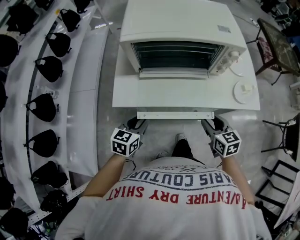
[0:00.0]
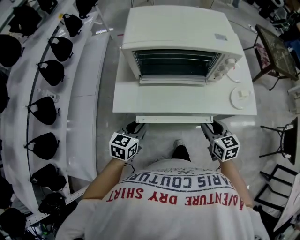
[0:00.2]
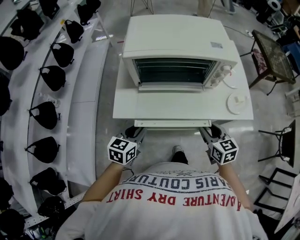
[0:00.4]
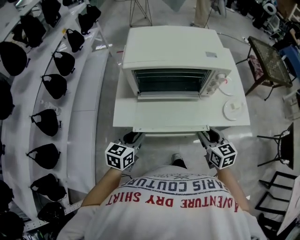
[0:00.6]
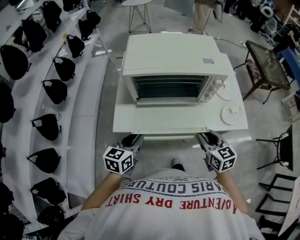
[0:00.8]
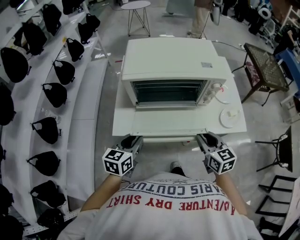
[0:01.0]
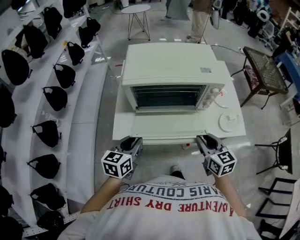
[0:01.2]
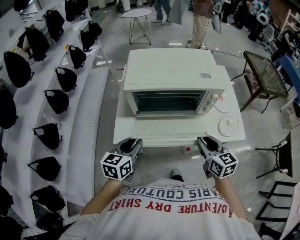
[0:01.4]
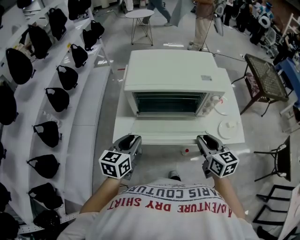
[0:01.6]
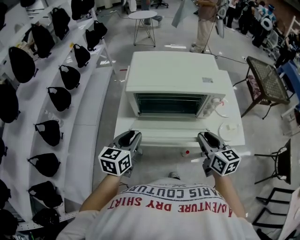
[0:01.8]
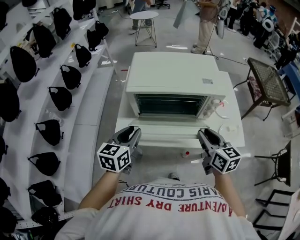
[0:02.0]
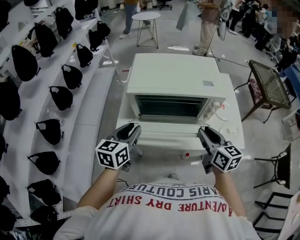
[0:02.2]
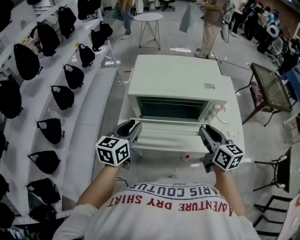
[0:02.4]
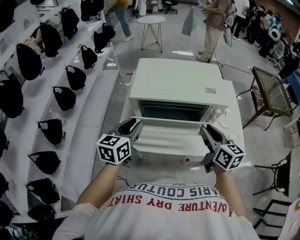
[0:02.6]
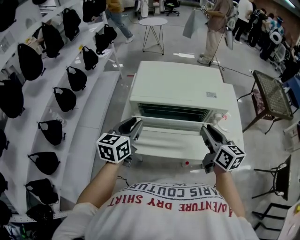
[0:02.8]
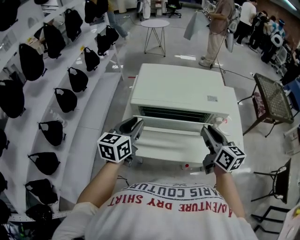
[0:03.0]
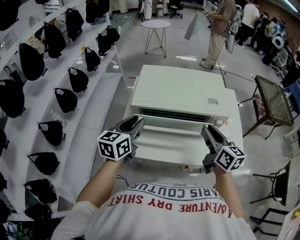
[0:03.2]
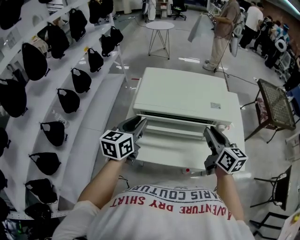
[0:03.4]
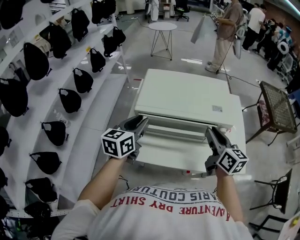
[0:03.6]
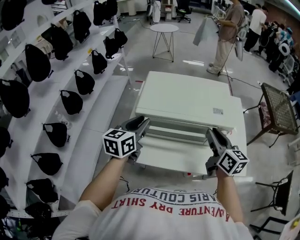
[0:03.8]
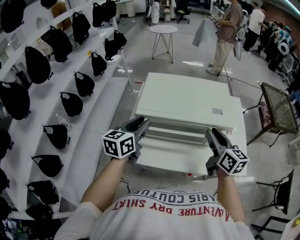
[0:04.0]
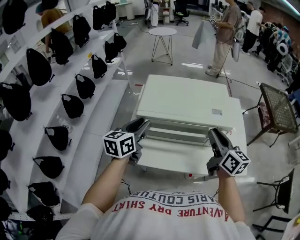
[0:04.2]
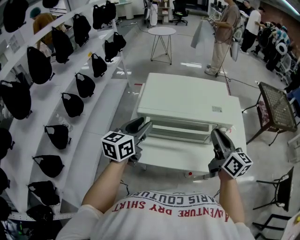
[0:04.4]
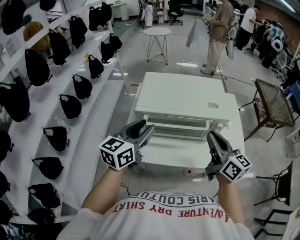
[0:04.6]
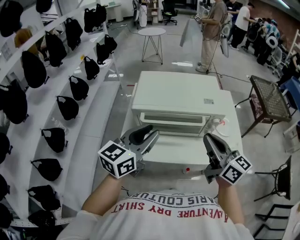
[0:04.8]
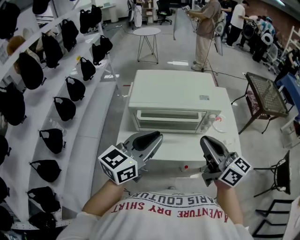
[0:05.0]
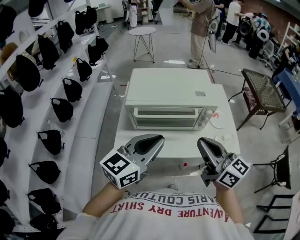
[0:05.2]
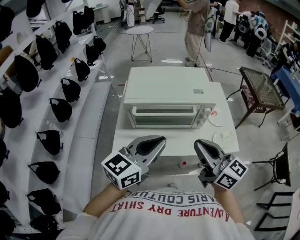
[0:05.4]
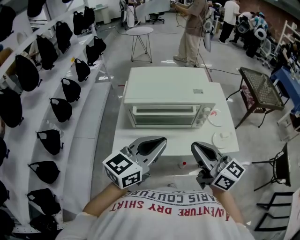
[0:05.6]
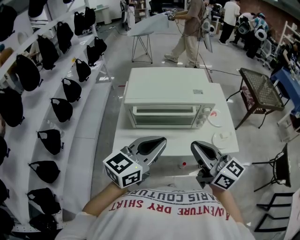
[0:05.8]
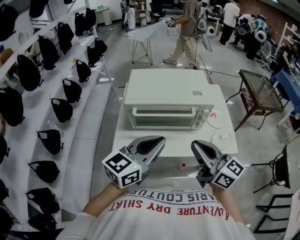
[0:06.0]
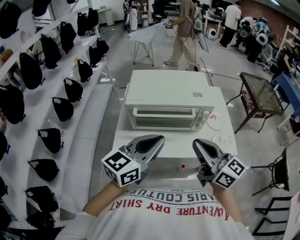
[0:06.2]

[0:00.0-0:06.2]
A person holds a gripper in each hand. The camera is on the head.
0:00.0 to 0:01.6: The grippers both shift upward by approximately 15 cm.
0:01.6 to 0:03.2: The grippers both shift forward and upward by about 15 cm.
0:03.2 to 0:04.6: The grippers both shift upward by about 5 cm.
0:04.6 to 0:06.2: The left gripper shifts roughly 15 cm backward and to the right, and closes up; the right gripper heads backward, covering approximately 10 cm.

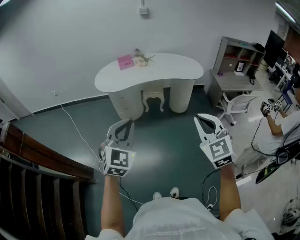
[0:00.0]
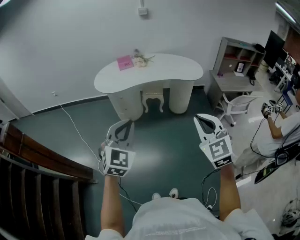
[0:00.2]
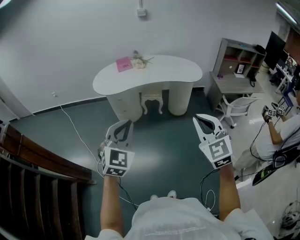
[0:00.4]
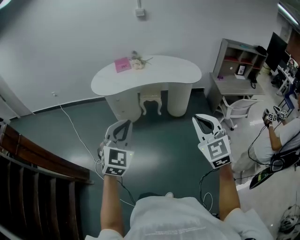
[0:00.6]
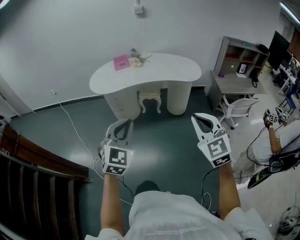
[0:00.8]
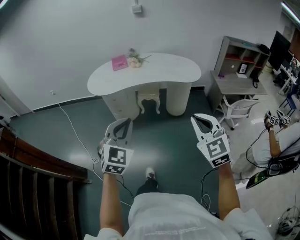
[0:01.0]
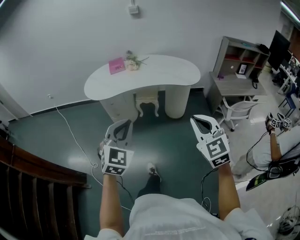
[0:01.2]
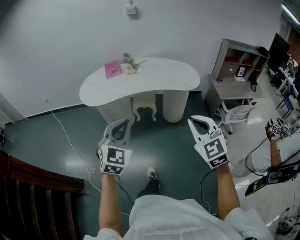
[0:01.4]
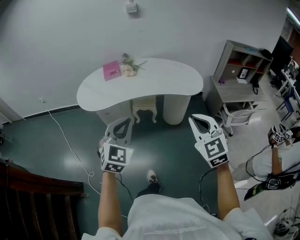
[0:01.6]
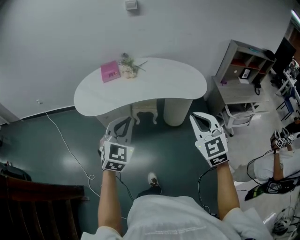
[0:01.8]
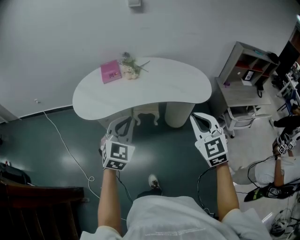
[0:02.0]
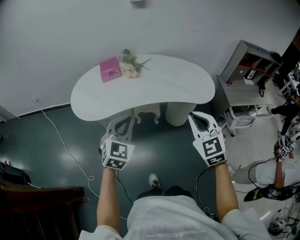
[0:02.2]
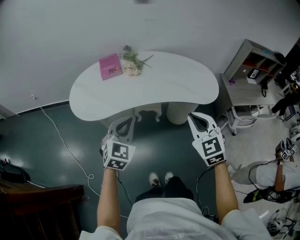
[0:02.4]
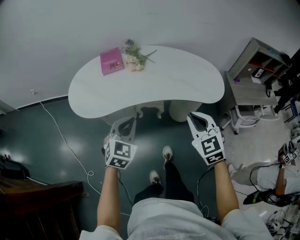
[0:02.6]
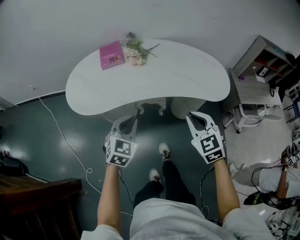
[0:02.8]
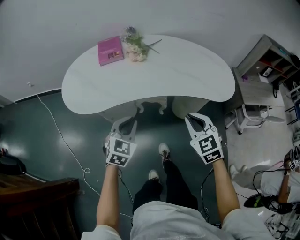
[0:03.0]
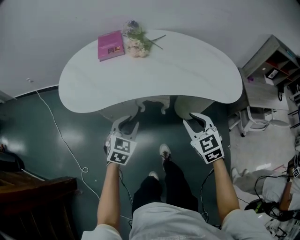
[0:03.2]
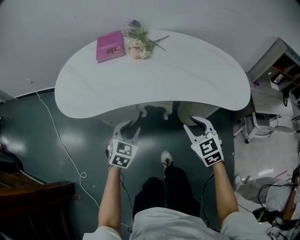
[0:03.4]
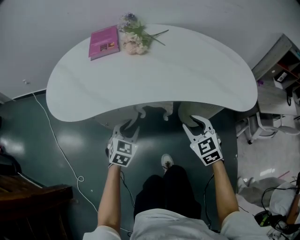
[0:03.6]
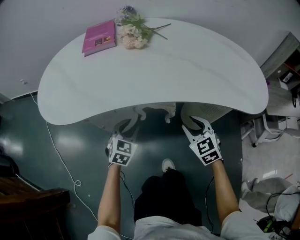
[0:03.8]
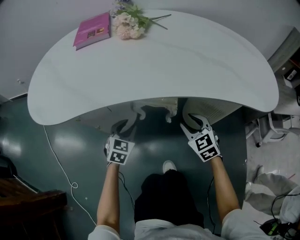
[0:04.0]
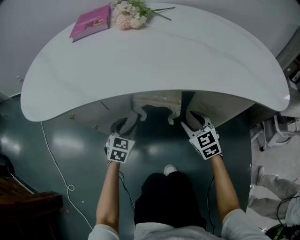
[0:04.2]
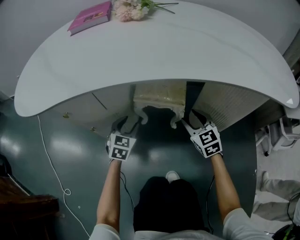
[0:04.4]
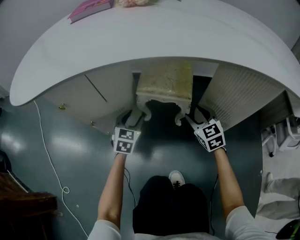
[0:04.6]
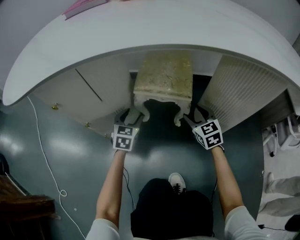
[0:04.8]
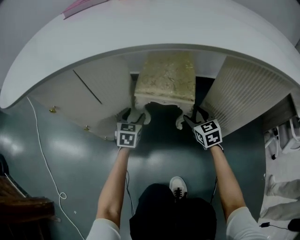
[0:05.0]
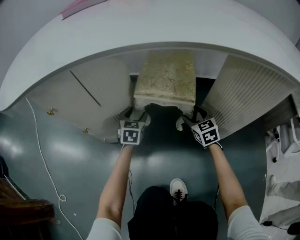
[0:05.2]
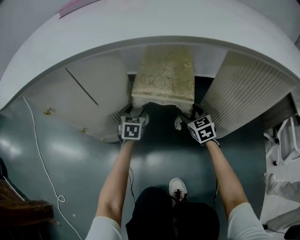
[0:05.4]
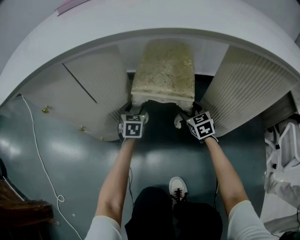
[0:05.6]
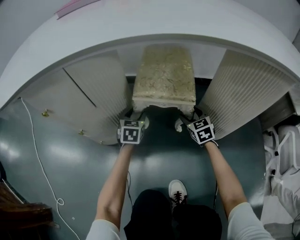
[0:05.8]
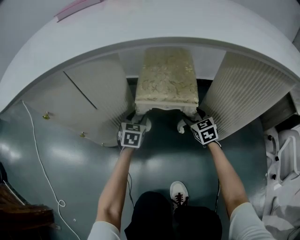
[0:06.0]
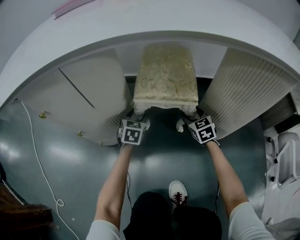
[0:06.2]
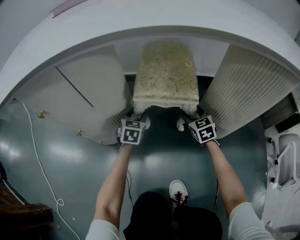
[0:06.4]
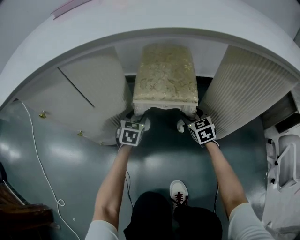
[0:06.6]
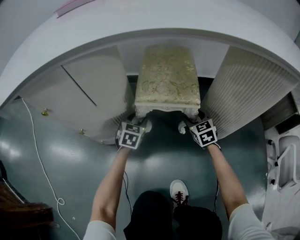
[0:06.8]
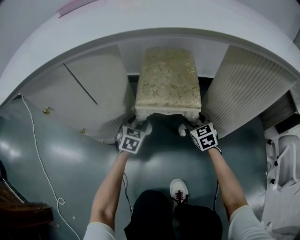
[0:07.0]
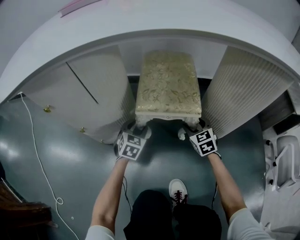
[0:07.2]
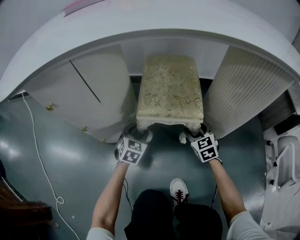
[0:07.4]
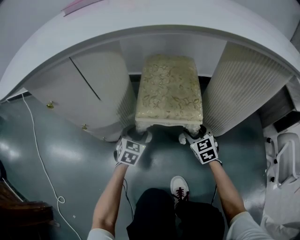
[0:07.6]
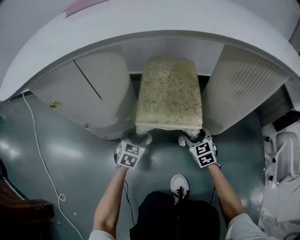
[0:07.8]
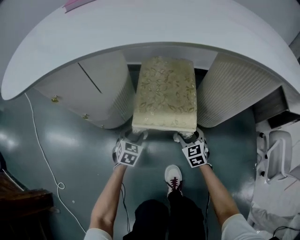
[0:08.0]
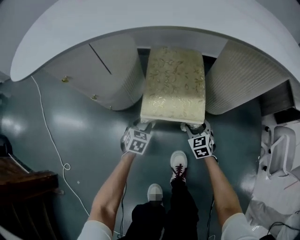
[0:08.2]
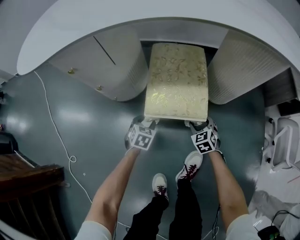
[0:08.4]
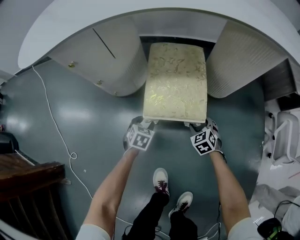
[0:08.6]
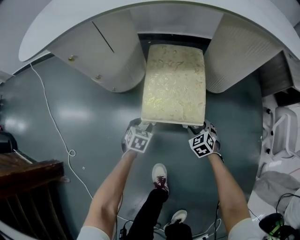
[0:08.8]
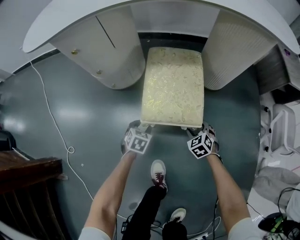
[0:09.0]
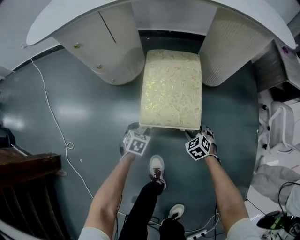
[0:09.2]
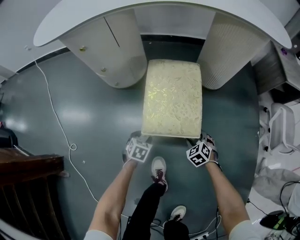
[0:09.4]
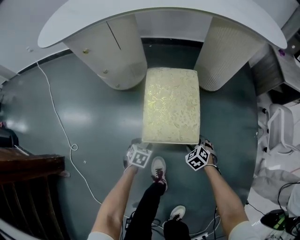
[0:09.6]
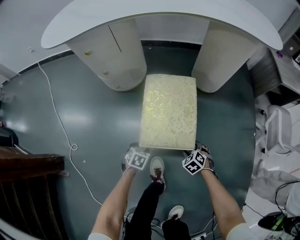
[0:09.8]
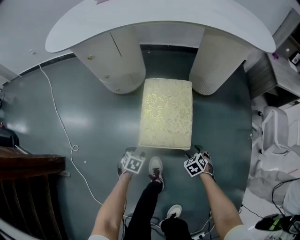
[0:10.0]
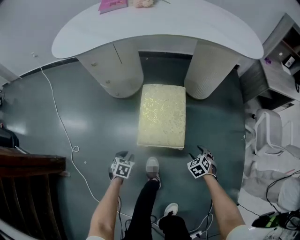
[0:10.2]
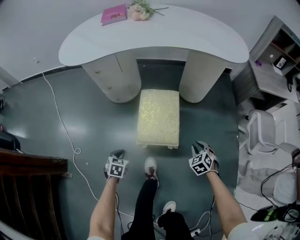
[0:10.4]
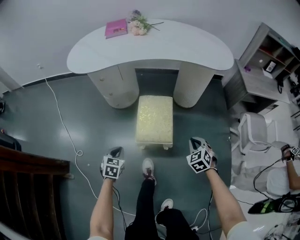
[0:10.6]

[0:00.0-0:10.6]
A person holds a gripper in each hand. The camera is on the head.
0:00.0 to 0:01.6: Both grippers move forward, roughly 25 cm.
0:01.6 to 0:03.0: The right gripper heads forward and downward, covering some 35 cm. The left gripper moves downward and forward, approximately 35 cm.
0:03.0 to 0:04.6: Both grippers travel together downward and forward, some 50 cm. The right gripper opens up. The left gripper opens its fingers.
0:04.6 to 0:06.0: The grippers both shift downward and forward by about 15 cm.
0:06.0 to 0:07.6: The grippers both shift backward by about 10 cm.
0:07.6 to 0:09.0: The grippers both shift backward by approximately 30 cm. The right gripper swivels about 30 degrees. Meanwhile the left gripper changes its angle by approximately 30 degrees.
0:09.0 to 0:10.6: Both grippers move upward and backward, roughly 40 cm. The right gripper closes its fingers, while the left gripper closes.

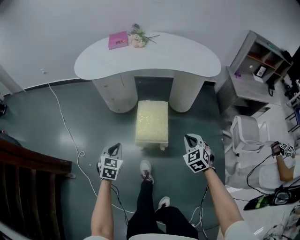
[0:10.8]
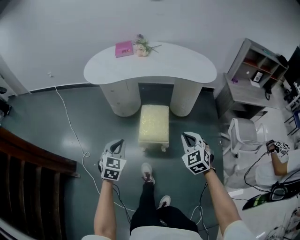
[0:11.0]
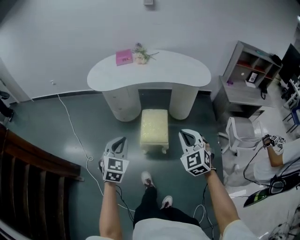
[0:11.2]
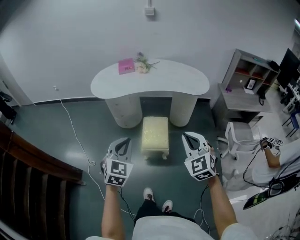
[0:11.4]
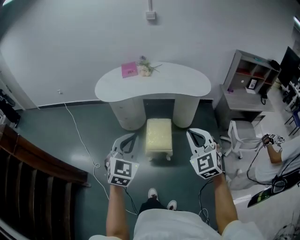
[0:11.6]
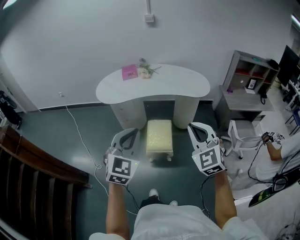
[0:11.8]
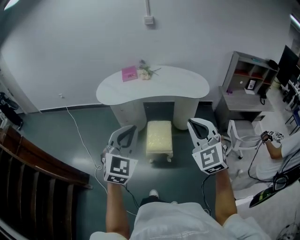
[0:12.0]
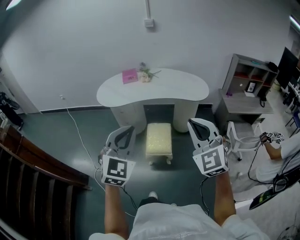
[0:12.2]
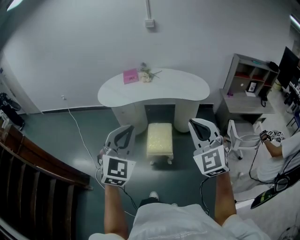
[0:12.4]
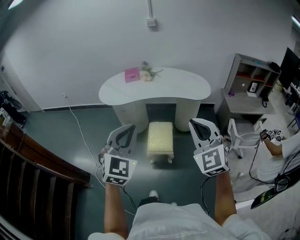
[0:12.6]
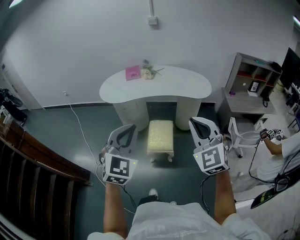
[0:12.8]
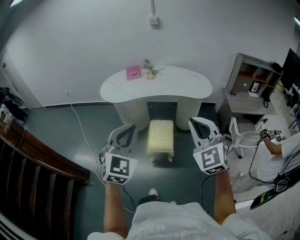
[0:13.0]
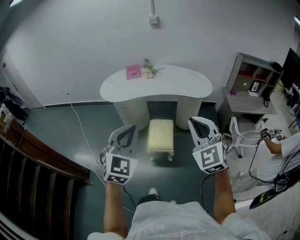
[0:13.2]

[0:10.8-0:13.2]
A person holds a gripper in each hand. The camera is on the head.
0:10.8 to 0:12.0: Both grippers travel together upward, approximately 40 cm. The right gripper tilts its fingers some 30 degrees upward. Meanwhile the left gripper tips its fingers upward by about 30 degrees.
0:12.0 to 0:13.2: The grippers make only small movements.

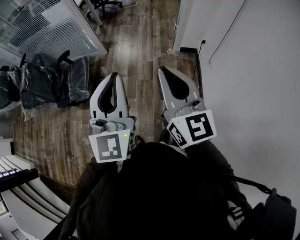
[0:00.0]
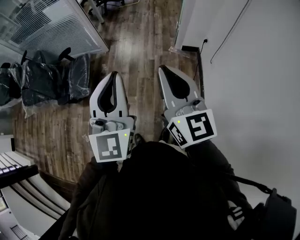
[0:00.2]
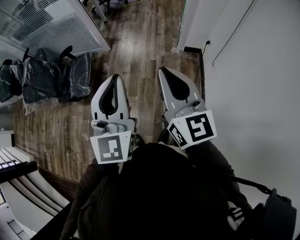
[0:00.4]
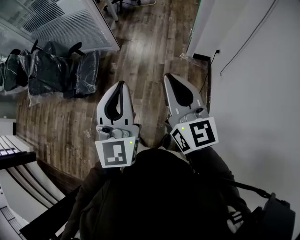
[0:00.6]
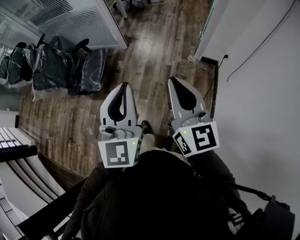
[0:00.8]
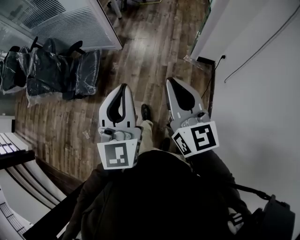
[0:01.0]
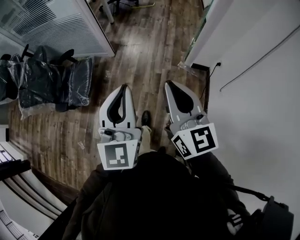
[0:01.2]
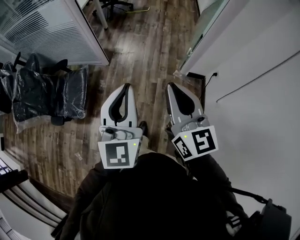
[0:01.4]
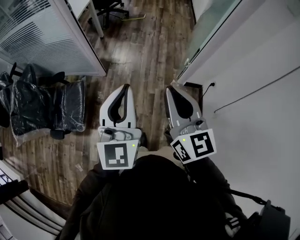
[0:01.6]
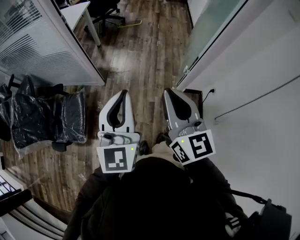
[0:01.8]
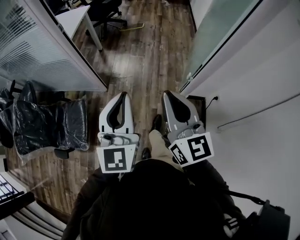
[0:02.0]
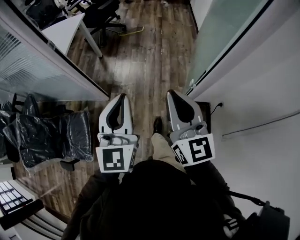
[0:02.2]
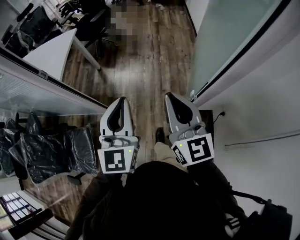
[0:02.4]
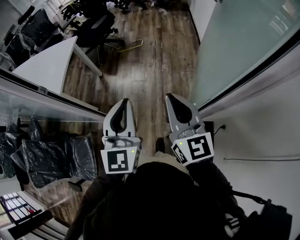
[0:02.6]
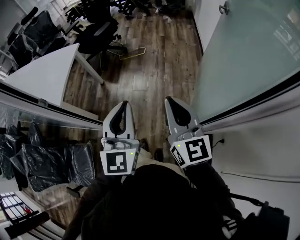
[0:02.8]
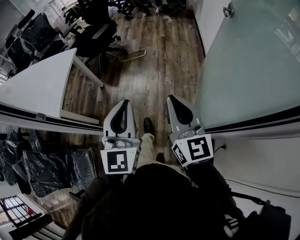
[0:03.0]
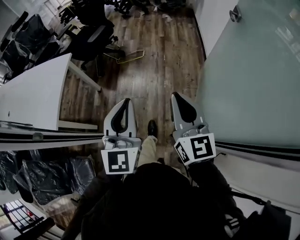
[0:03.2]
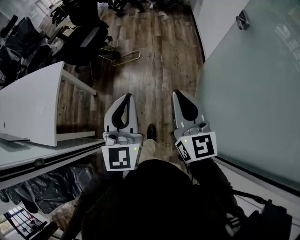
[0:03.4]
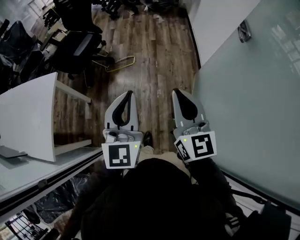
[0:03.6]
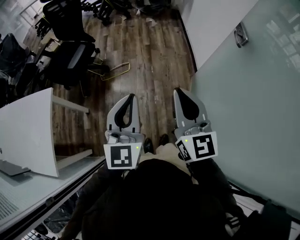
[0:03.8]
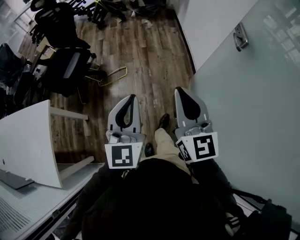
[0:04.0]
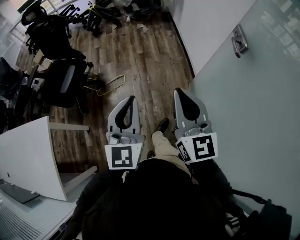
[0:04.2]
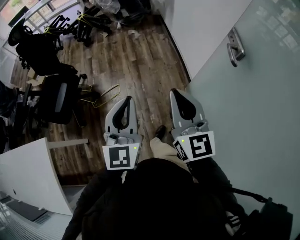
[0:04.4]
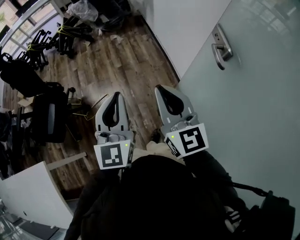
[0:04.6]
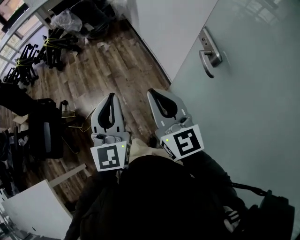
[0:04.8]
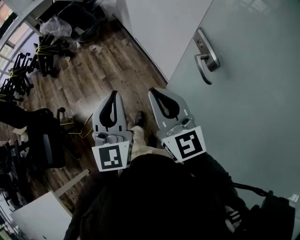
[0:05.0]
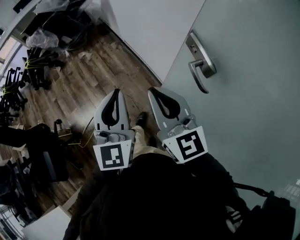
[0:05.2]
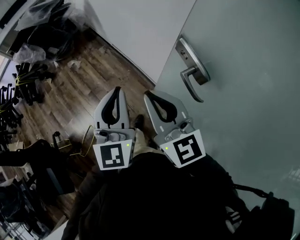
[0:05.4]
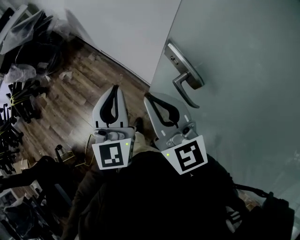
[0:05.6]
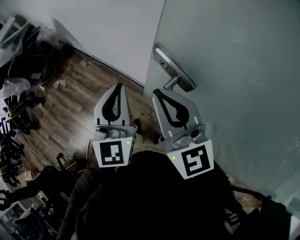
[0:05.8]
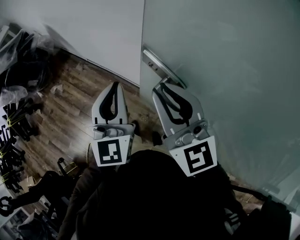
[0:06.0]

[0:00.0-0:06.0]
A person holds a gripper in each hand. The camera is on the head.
0:00.0 to 0:01.6: The two grippers go approximately 40 cm forward.
0:01.6 to 0:03.0: The two grippers travel together, forward, some 60 cm.
0:03.0 to 0:04.4: The pair of grippers is taken forward, about 60 cm.
0:04.4 to 0:06.0: Both grippers are carried some 50 cm. The left gripper turns by roughly 40 degrees. The right gripper swivels roughly 40 degrees.
